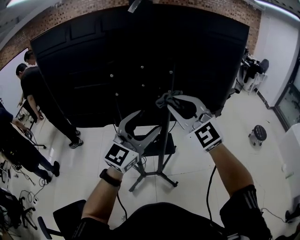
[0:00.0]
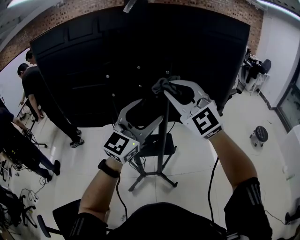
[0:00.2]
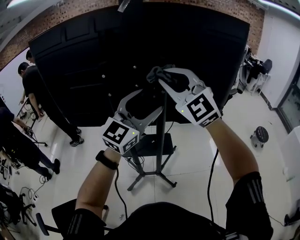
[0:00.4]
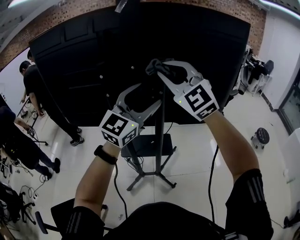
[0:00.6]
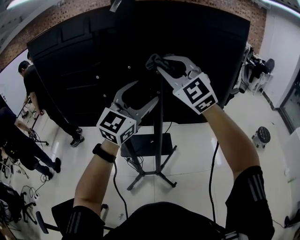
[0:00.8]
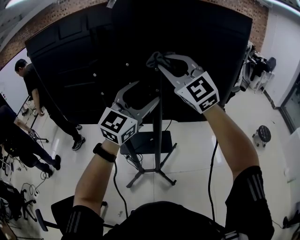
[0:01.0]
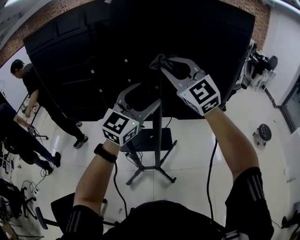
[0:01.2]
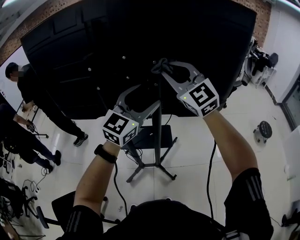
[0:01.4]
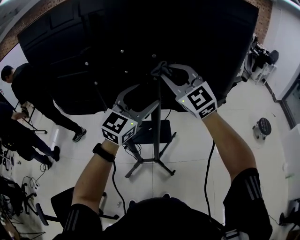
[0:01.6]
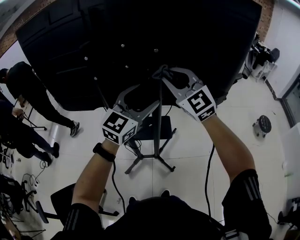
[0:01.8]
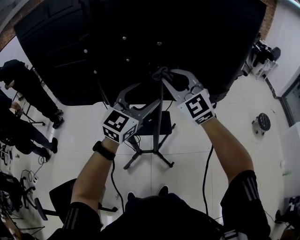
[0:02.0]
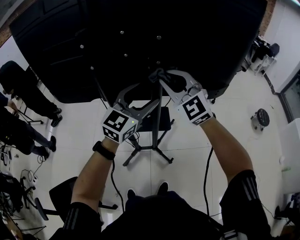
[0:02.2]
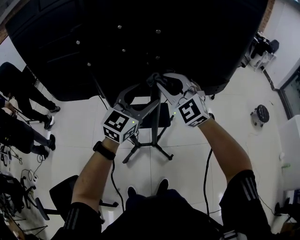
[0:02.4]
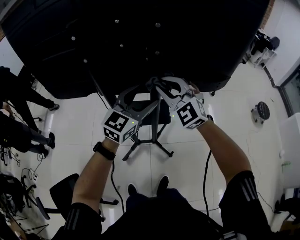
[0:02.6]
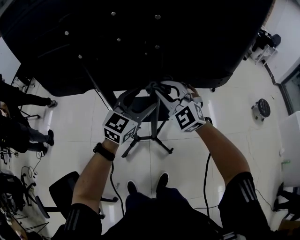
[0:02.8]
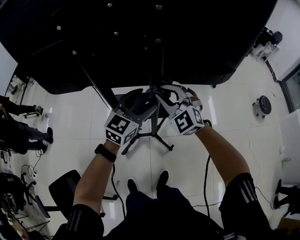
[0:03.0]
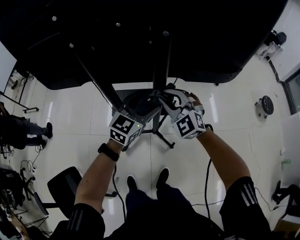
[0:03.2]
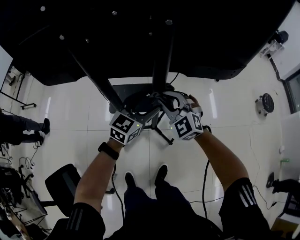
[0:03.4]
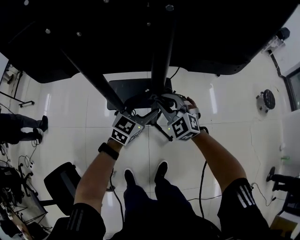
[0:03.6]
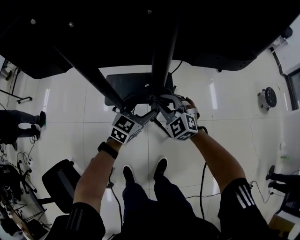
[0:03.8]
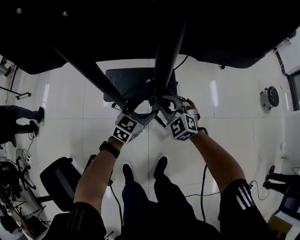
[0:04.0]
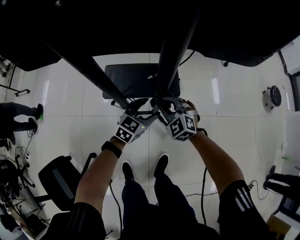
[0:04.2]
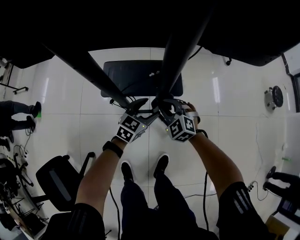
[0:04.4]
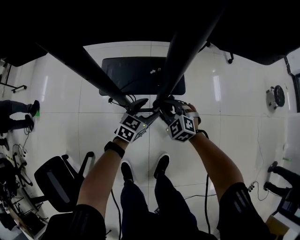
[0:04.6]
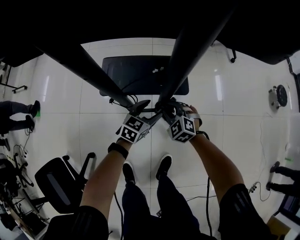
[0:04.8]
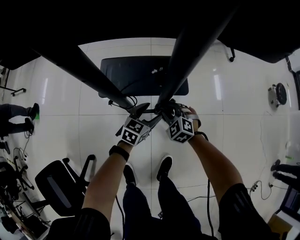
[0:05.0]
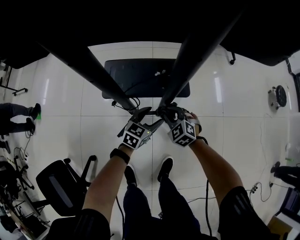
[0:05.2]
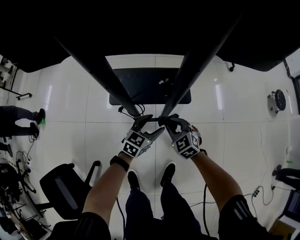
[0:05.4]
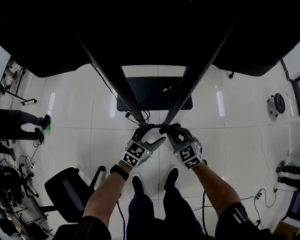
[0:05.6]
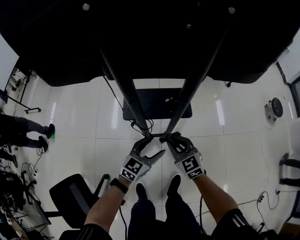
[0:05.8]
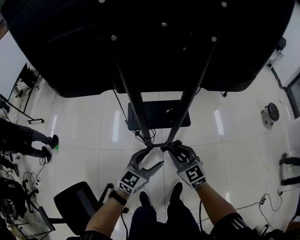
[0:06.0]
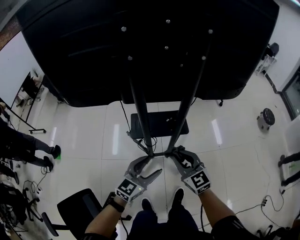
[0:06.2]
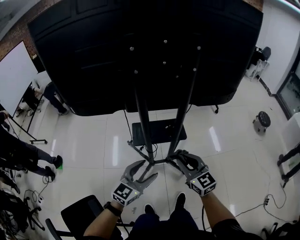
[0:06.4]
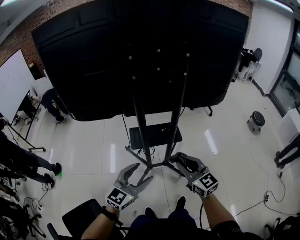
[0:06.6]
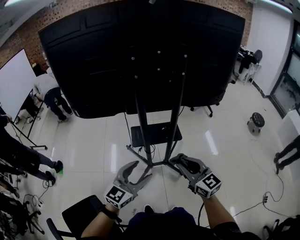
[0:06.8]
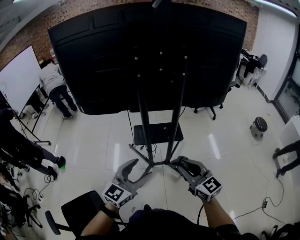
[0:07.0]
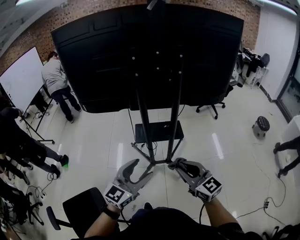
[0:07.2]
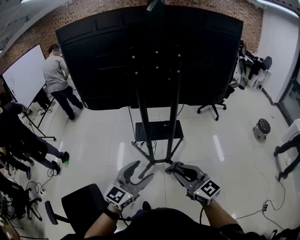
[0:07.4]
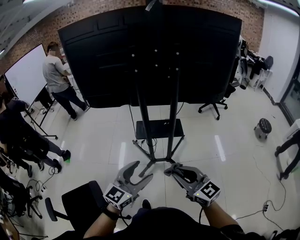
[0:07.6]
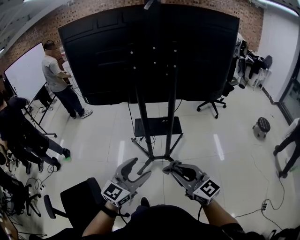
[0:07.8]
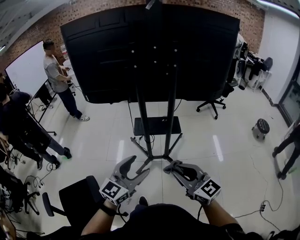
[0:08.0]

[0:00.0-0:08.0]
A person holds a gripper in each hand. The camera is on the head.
0:00.0 to 0:01.6: The right gripper is displaced forward by roughly 10 cm, while the left gripper goes approximately 10 cm forward and to the right.
0:01.6 to 0:03.2: Both grippers move downward, some 25 cm. The right gripper swivels about 20 degrees.
0:03.2 to 0:04.8: The grippers both shift downward by roughly 40 cm. The left gripper turns by about 20 degrees, while the right gripper turns by about 30 degrees.
0:04.8 to 0:06.4: Both grippers move upward and backward, approximately 50 cm. The left gripper rotates approximately 20 degrees; the right gripper points its fingers approximately 30 degrees further upward.
0:06.4 to 0:08.0: The two grippers go roughly 25 cm backward and upward.

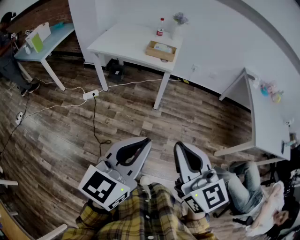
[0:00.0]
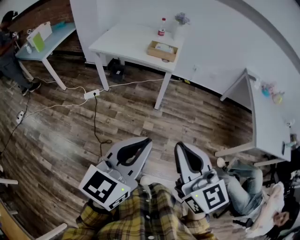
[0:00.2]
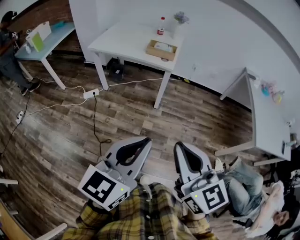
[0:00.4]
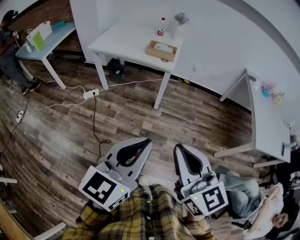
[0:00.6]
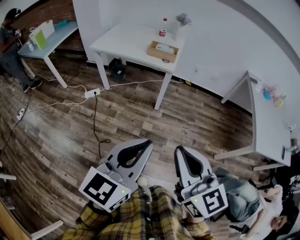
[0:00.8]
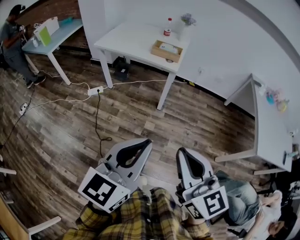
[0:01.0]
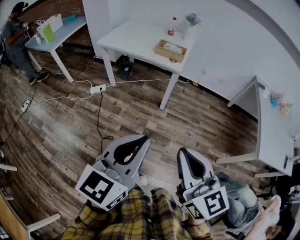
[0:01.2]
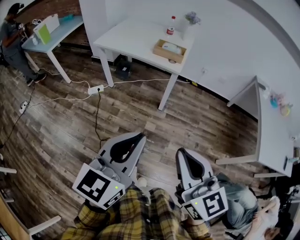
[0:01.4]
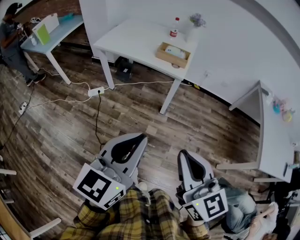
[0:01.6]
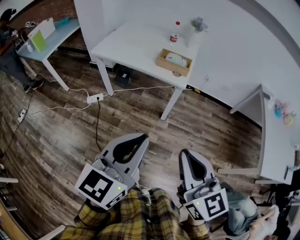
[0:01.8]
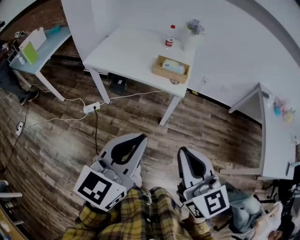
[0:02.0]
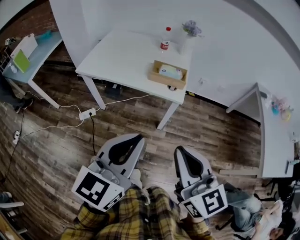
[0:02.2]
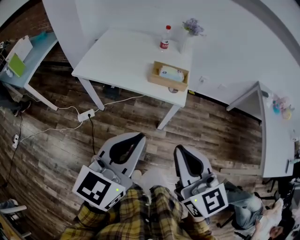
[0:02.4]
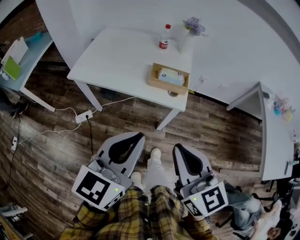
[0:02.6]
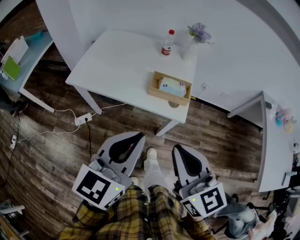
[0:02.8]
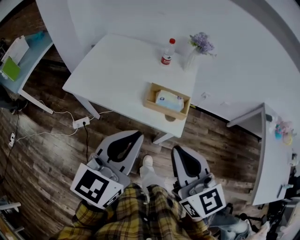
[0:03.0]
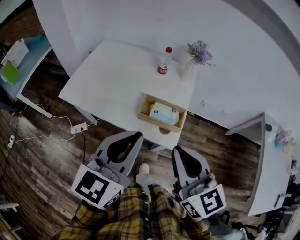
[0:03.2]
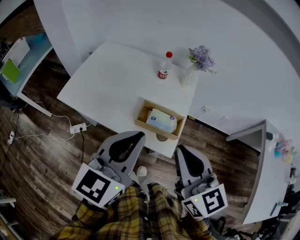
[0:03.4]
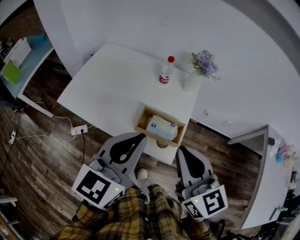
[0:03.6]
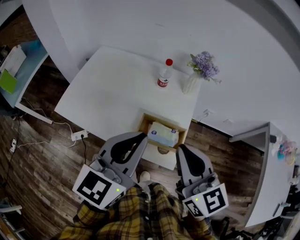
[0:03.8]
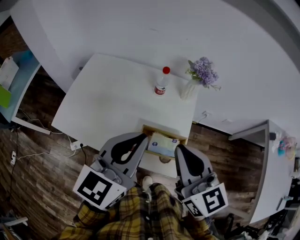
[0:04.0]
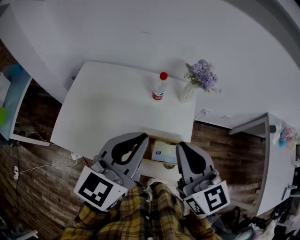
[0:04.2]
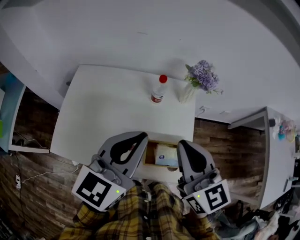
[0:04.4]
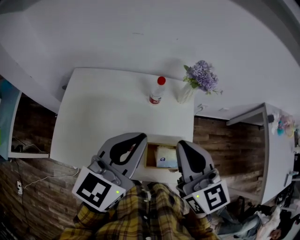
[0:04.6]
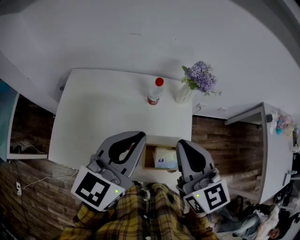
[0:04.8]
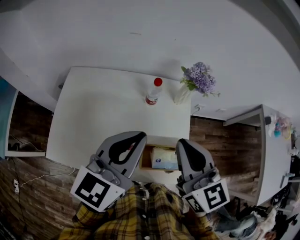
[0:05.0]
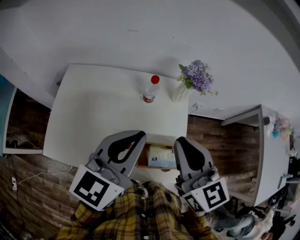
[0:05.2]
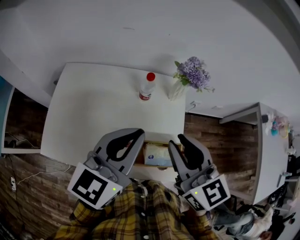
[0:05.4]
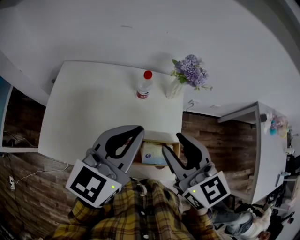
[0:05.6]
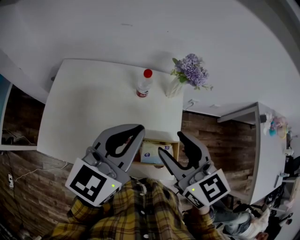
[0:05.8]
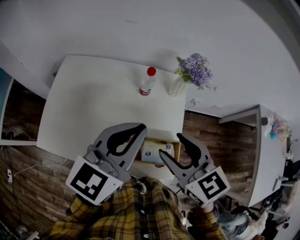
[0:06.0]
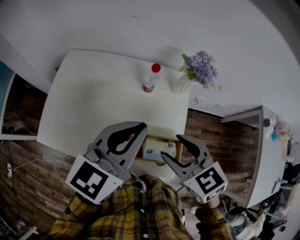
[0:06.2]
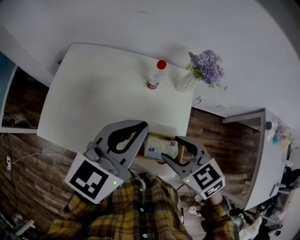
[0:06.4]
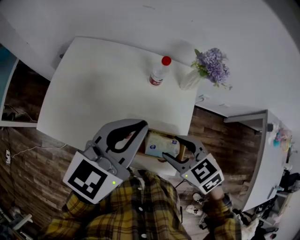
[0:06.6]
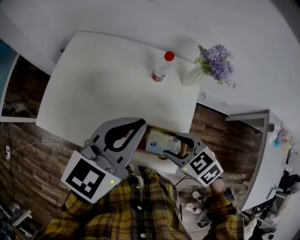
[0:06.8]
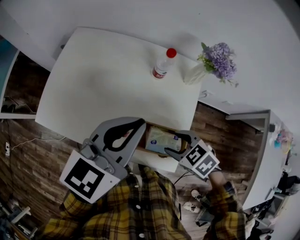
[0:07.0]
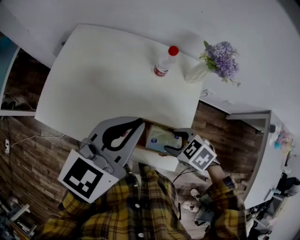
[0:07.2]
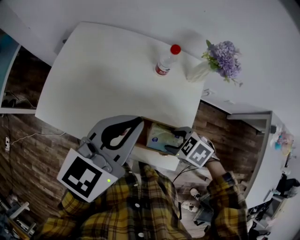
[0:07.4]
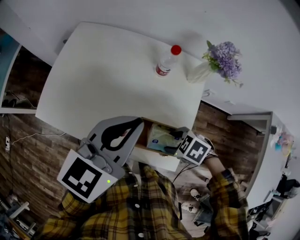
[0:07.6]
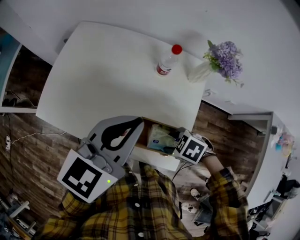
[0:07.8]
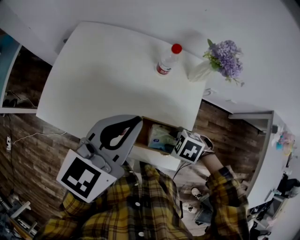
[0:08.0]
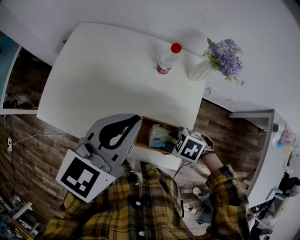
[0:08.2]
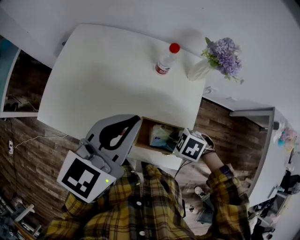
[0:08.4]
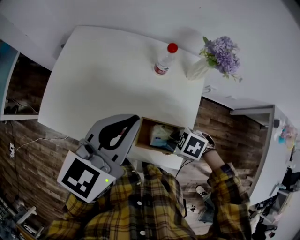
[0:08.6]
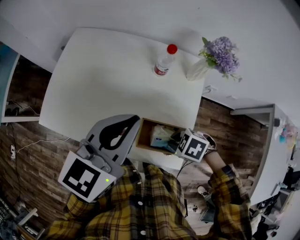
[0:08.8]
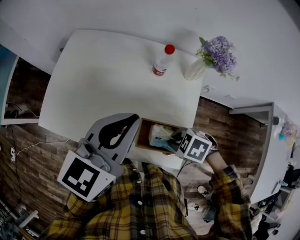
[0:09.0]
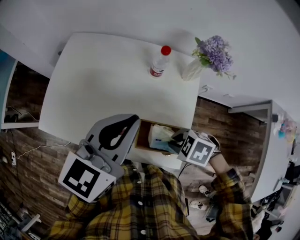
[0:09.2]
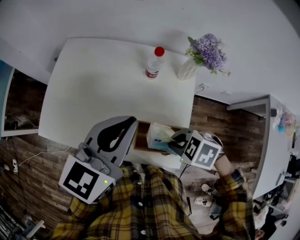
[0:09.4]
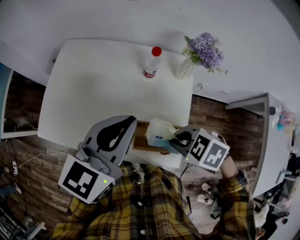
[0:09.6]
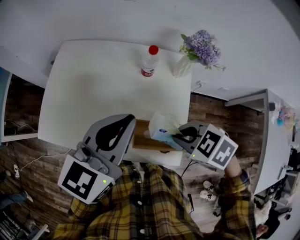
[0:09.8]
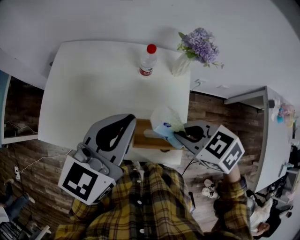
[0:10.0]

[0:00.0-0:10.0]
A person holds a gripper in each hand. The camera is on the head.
0:00.0 to 0:01.4: The left gripper is displaced forward by about 5 cm. Meanwhile the right gripper moves some 5 cm.
0:01.4 to 0:02.8: Both grippers are carried forward, roughly 40 cm.
0:02.8 to 0:04.2: Both grippers move forward, about 35 cm.
0:04.2 to 0:05.8: The left gripper moves forward, approximately 5 cm. The right gripper moves about 5 cm, and opens.
0:05.8 to 0:07.2: The right gripper moves downward, about 25 cm, and tips its fingers downward by roughly 40 degrees. Meanwhile the left gripper shifts about 5 cm downward.
0:07.2 to 0:08.6: The right gripper closes its fingers.
0:08.6 to 0:10.0: The right gripper heads upward, covering roughly 15 cm, and turns by some 30 degrees.

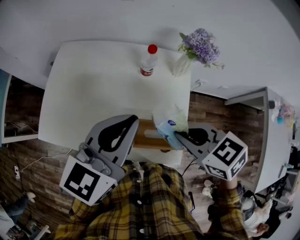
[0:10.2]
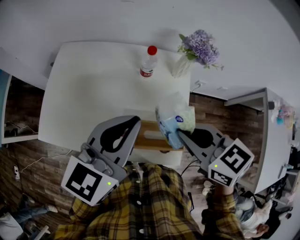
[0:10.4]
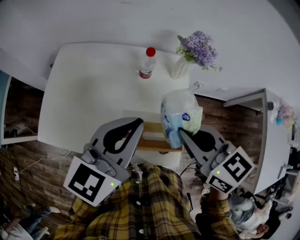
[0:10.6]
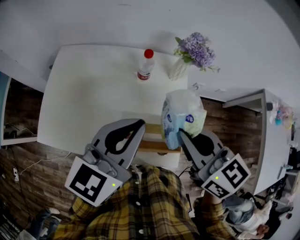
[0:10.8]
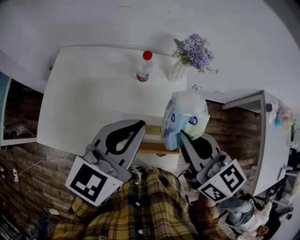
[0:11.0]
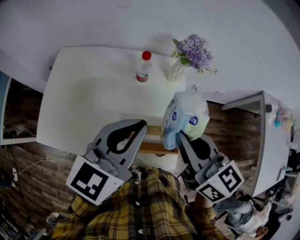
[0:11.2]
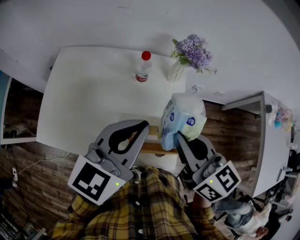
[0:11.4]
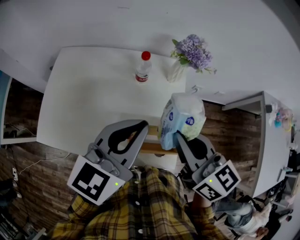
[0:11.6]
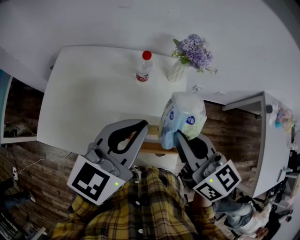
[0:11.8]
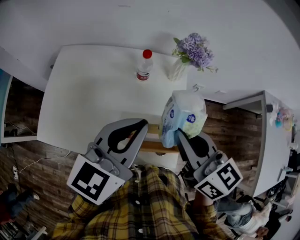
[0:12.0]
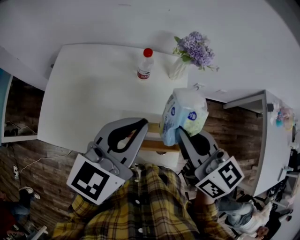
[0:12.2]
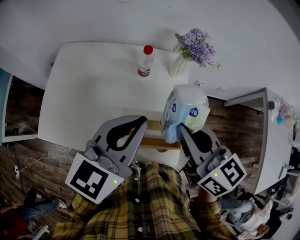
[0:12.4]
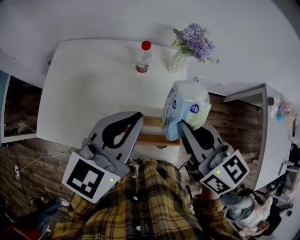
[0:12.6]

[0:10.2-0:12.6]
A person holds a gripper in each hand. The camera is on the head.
0:10.2 to 0:11.4: The right gripper heads upward, covering some 5 cm, and tilts its fingers roughly 30 degrees upward.
0:11.4 to 0:12.6: The grippers move only a little.

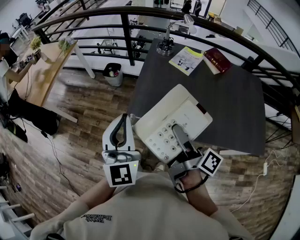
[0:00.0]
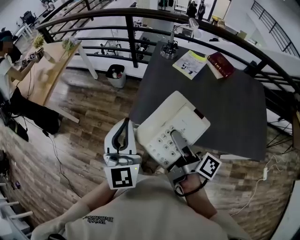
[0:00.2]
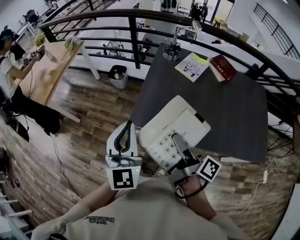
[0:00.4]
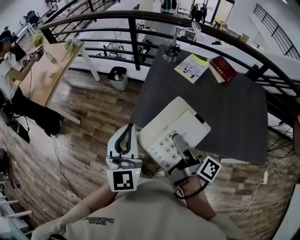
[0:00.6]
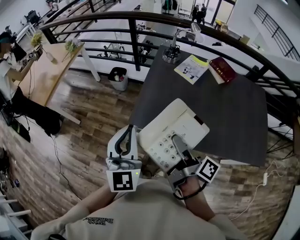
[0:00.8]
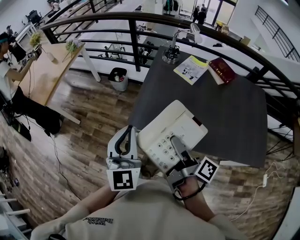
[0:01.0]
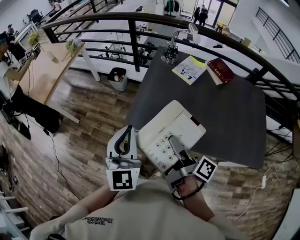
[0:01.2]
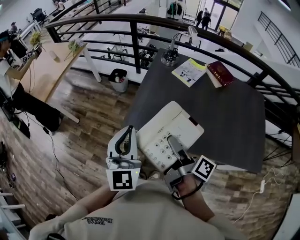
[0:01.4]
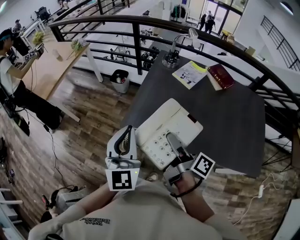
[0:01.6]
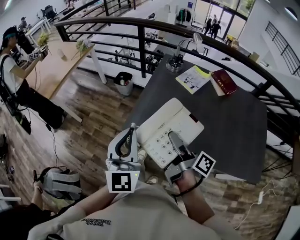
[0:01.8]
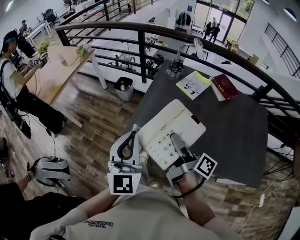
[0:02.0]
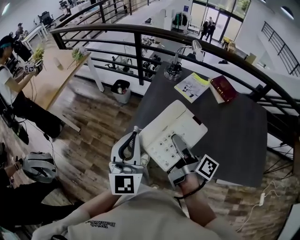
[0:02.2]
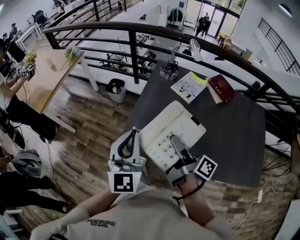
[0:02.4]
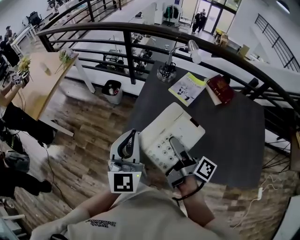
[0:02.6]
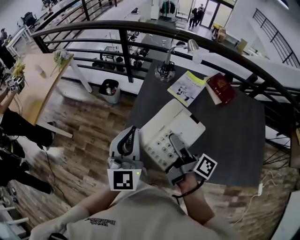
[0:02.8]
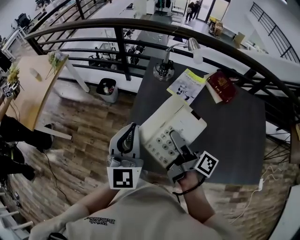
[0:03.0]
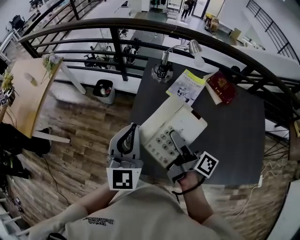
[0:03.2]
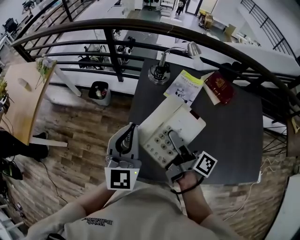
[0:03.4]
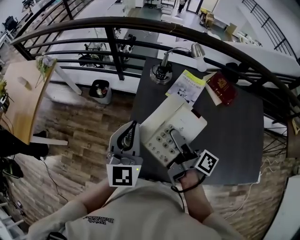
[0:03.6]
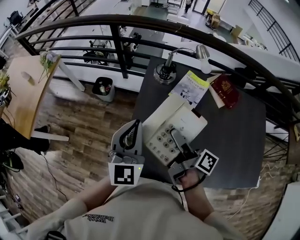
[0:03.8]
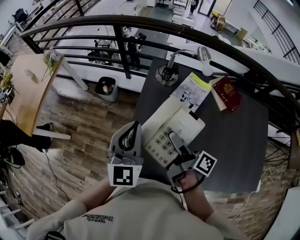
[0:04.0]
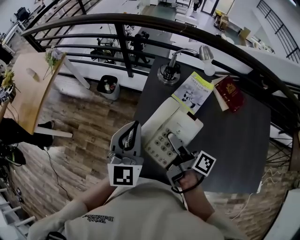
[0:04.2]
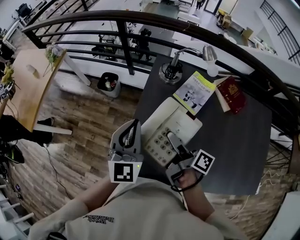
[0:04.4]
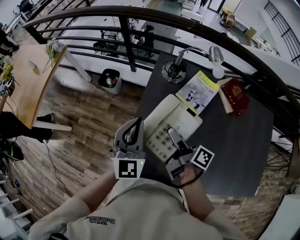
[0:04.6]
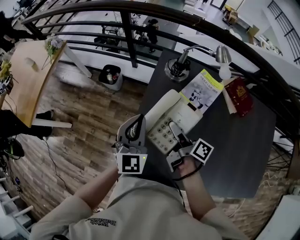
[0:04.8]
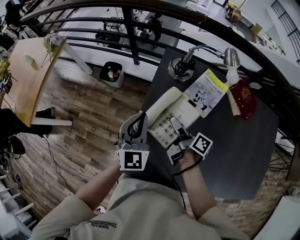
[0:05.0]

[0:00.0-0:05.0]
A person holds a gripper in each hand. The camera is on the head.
0:00.0 to 0:01.6: The left gripper moves to the right, some 5 cm; the right gripper changes place by roughly 5 cm.
0:01.6 to 0:03.4: The grippers both shift forward by some 30 cm.
0:03.4 to 0:05.0: The grippers both shift downward and forward by approximately 20 cm.